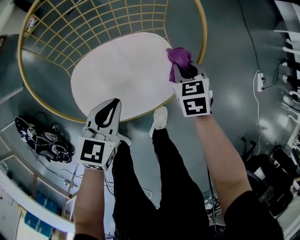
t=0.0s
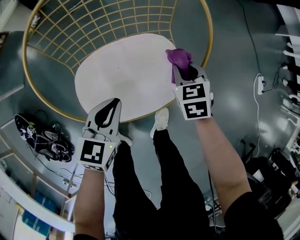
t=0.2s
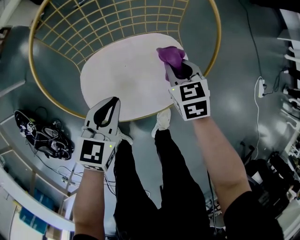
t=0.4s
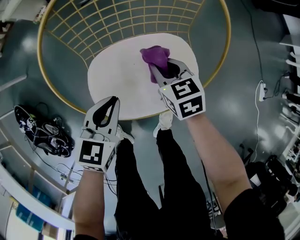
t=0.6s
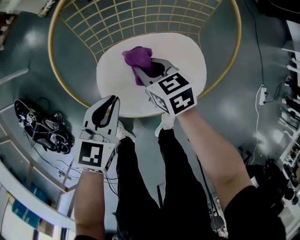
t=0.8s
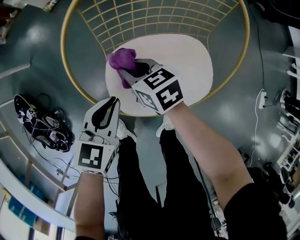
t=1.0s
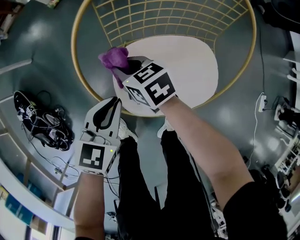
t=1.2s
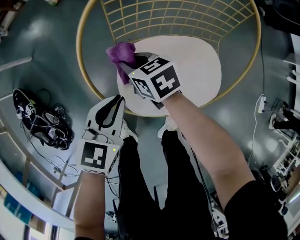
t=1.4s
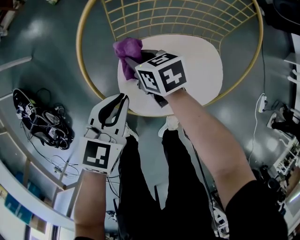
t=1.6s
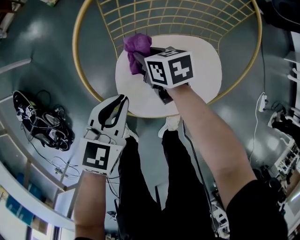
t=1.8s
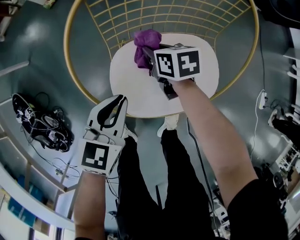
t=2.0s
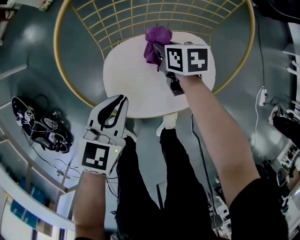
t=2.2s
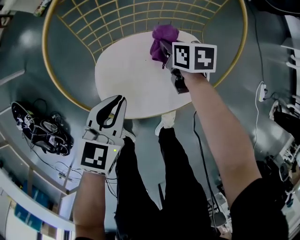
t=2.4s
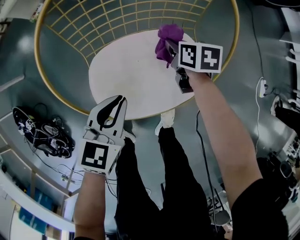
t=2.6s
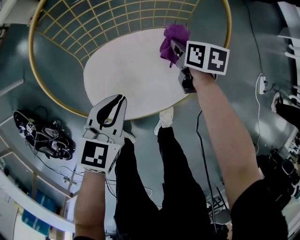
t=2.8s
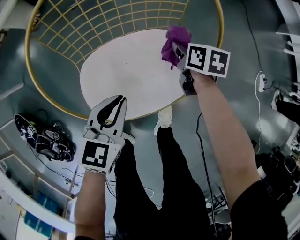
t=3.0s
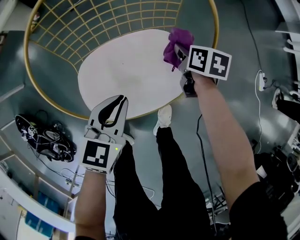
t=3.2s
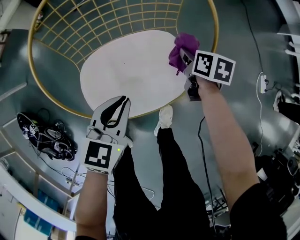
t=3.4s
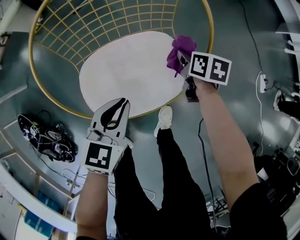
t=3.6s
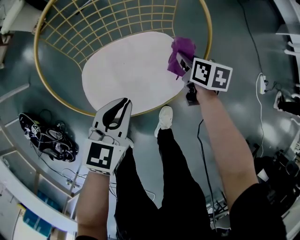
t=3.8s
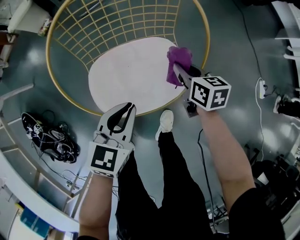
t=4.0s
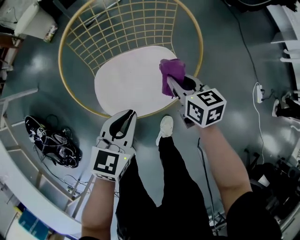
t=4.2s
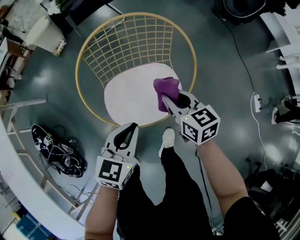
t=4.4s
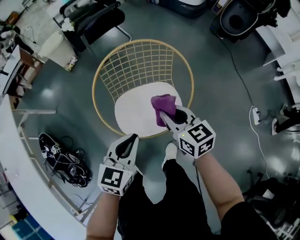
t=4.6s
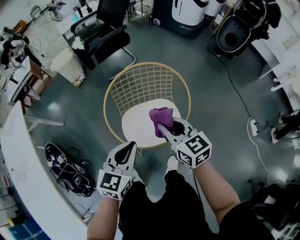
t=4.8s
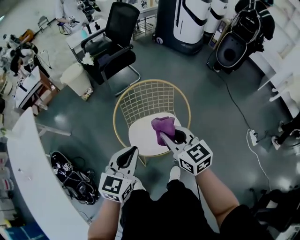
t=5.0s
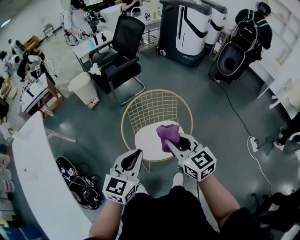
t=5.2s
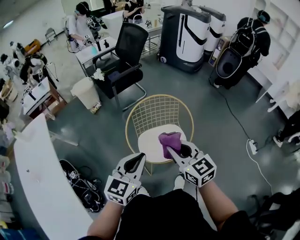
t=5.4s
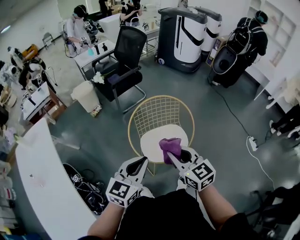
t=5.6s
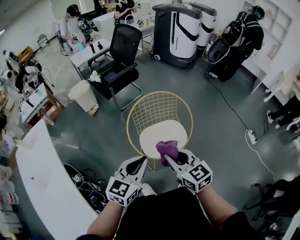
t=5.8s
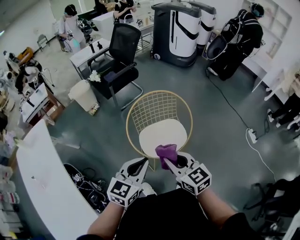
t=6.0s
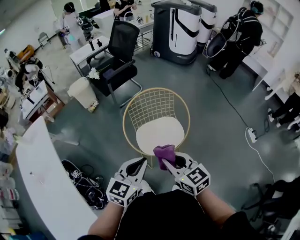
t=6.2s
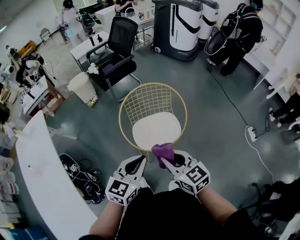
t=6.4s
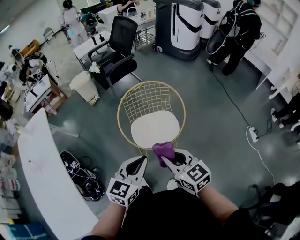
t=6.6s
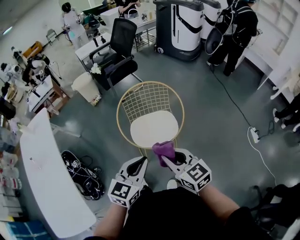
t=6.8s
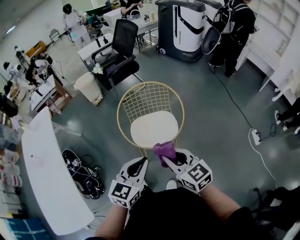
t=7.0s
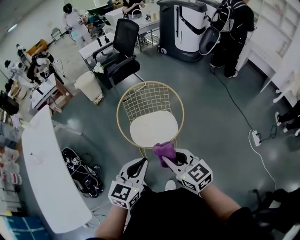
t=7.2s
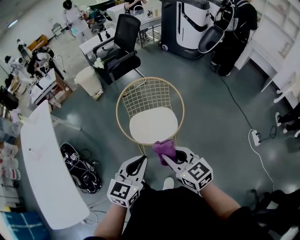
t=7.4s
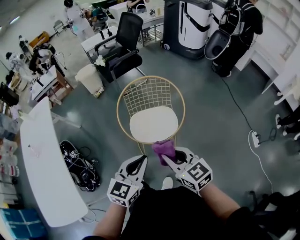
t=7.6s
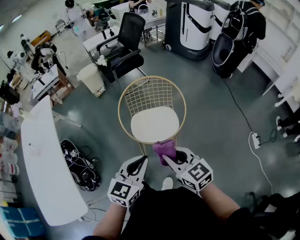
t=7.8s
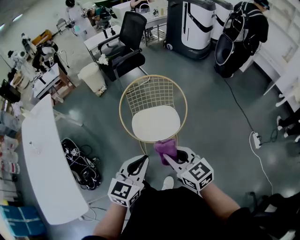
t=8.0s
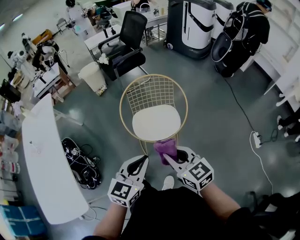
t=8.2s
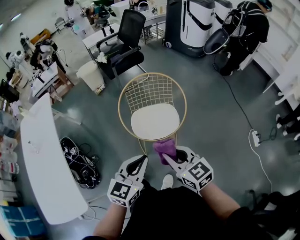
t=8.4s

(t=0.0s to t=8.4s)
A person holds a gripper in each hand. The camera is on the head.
t=0.0s - t=1.4s: The right gripper ends up some 40 cm from where it was, and changes its angle by about 40 degrees, while the left gripper ends up approximately 15 cm from where it was.
t=1.4s - t=2.8s: The left gripper changes place by some 10 cm, while the right gripper changes place by approximately 30 cm, and rotates roughly 40 degrees.
t=2.8s - t=4.2s: The left gripper heads upward, covering approximately 10 cm; the right gripper travels upward and backward by roughly 20 cm, and swivels some 20 degrees.
t=4.2s - t=5.6s: The right gripper heads upward, backward and to the left, covering approximately 50 cm, and swivels roughly 30 degrees. Meanwhile the left gripper heads upward, covering some 35 cm.
t=5.6s - t=7.0s: Both grippers travel together to the right and backward, about 15 cm.
t=7.0s - t=8.4s: The grippers make only small movements.

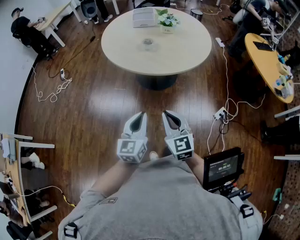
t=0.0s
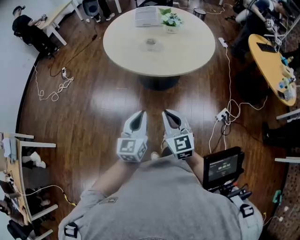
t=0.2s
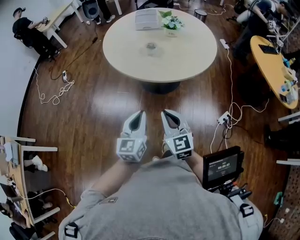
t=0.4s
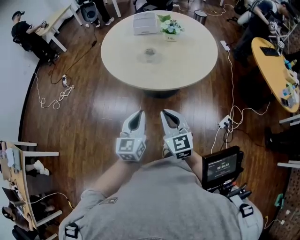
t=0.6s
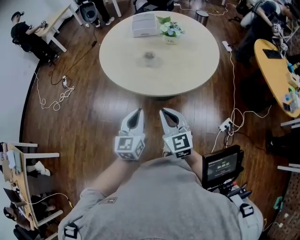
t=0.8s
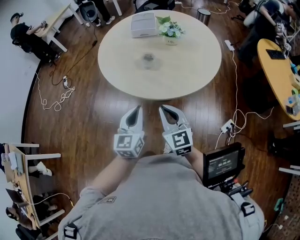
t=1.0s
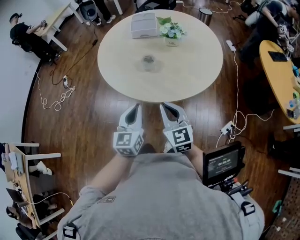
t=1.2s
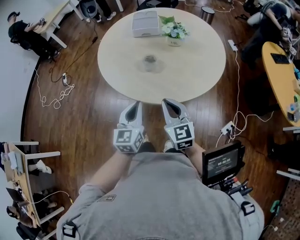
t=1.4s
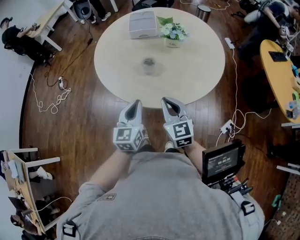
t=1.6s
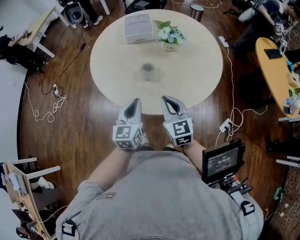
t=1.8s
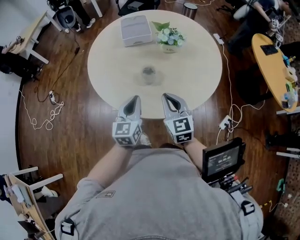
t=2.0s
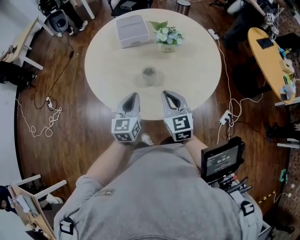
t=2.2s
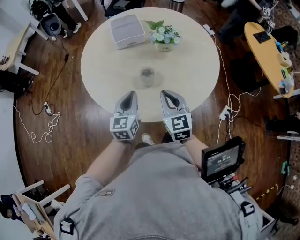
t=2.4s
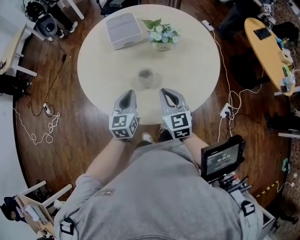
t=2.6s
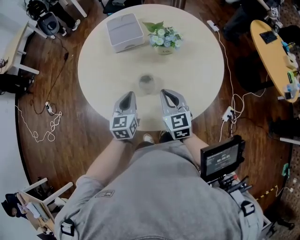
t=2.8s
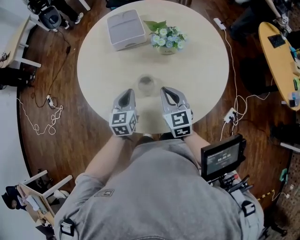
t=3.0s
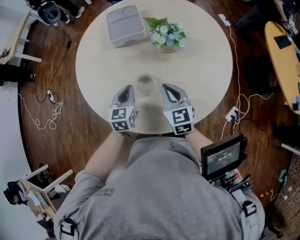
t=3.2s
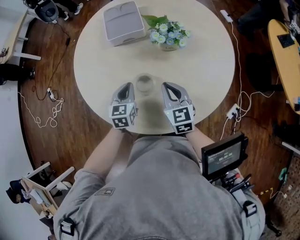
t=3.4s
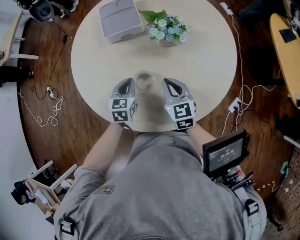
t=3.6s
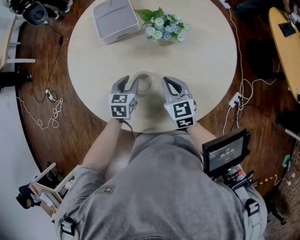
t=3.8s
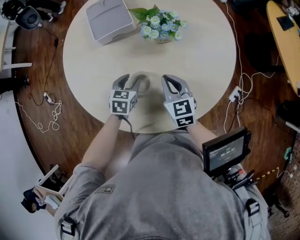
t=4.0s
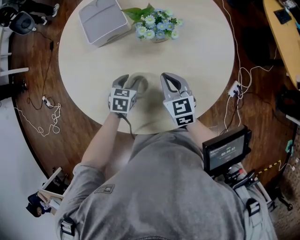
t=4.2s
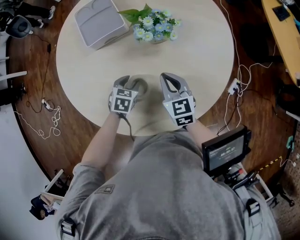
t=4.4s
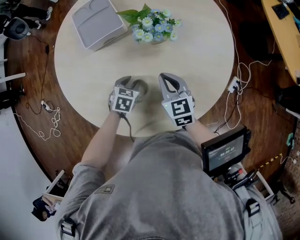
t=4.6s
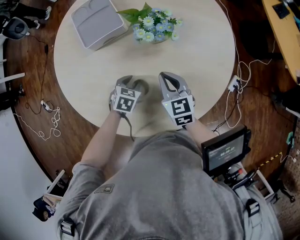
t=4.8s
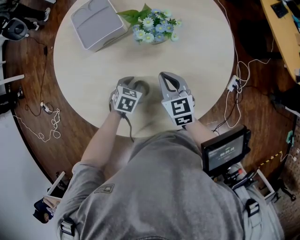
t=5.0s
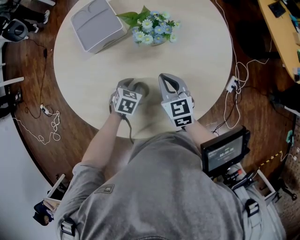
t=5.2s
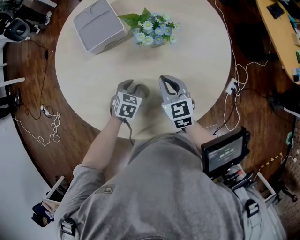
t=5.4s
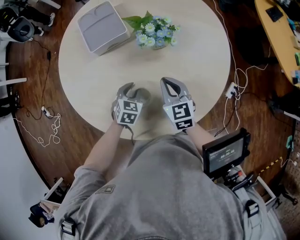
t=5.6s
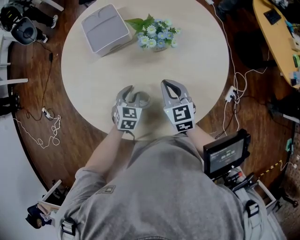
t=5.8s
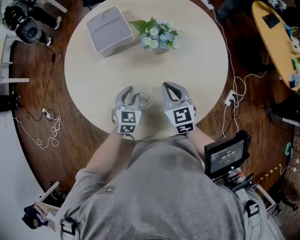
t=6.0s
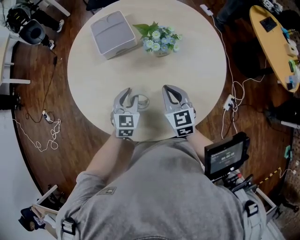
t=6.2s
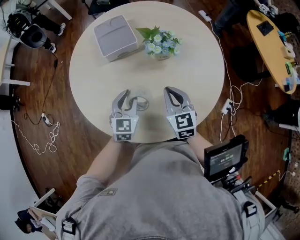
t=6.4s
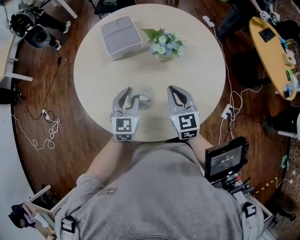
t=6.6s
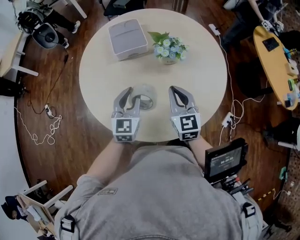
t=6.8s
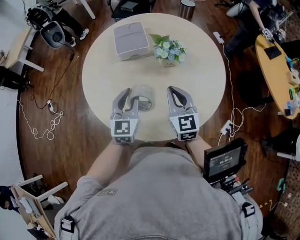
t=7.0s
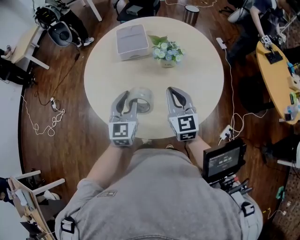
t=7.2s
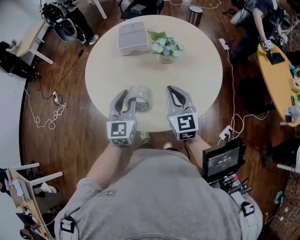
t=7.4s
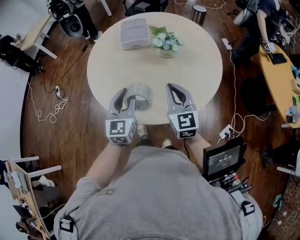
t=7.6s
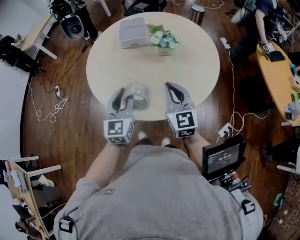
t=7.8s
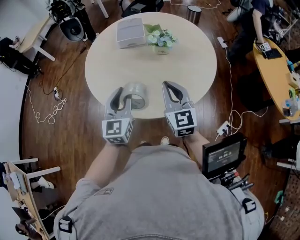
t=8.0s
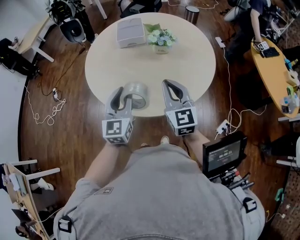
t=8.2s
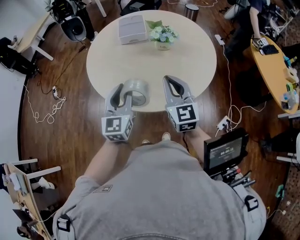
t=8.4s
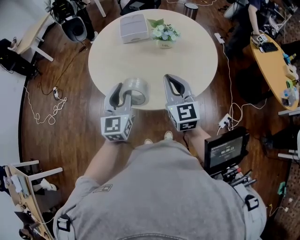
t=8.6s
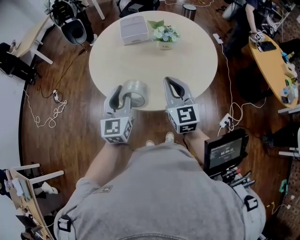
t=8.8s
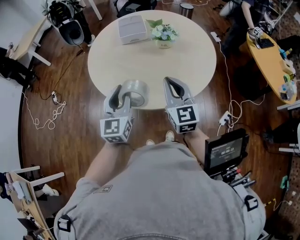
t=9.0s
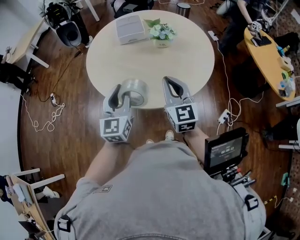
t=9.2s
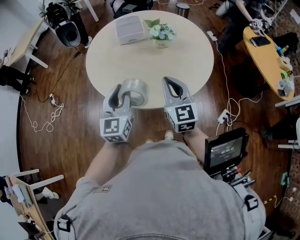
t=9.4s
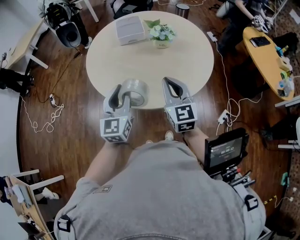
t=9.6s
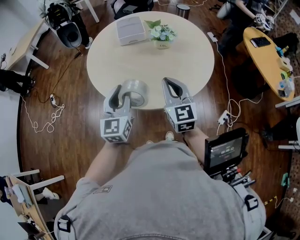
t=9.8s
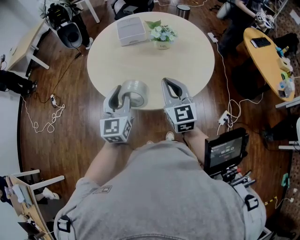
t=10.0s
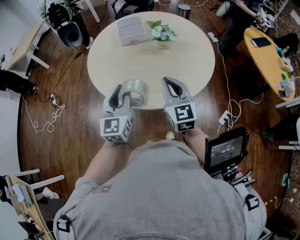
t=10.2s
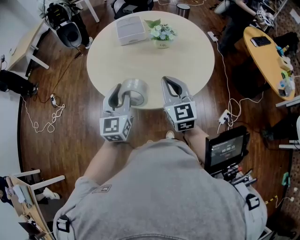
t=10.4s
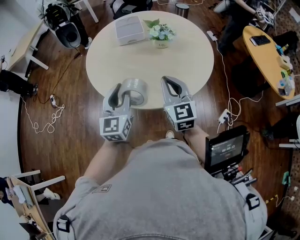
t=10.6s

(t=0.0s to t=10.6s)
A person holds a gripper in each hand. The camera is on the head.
t=0.0s - t=1.6s: Both grippers travel together forward, some 30 cm.
t=1.6s - t=3.0s: The grippers both shift forward by some 20 cm.
t=3.0s - t=4.6s: The left gripper goes approximately 15 cm downward and forward, points its fingers about 40 degrees further downward, and opens. The right gripper goes some 10 cm forward and downward.
t=4.6s - t=6.0s: The left gripper moves upward, approximately 10 cm, and rotates some 30 degrees.
t=6.0s - t=7.6s: The right gripper is displaced upward, backward and to the right by roughly 20 cm, and turns by roughly 20 degrees; the left gripper travels upward and backward by approximately 25 cm, and turns by about 40 degrees.
t=7.6s - t=9.0s: The grippers both shift backward and to the left by roughly 10 cm.
t=9.0s - t=10.6s: Neither gripper changes place.

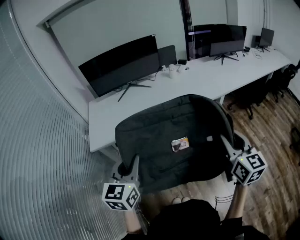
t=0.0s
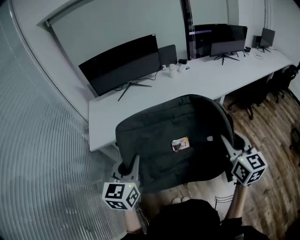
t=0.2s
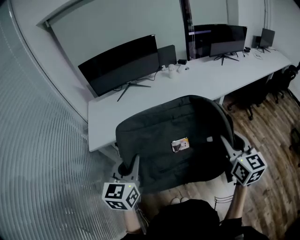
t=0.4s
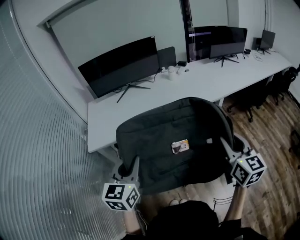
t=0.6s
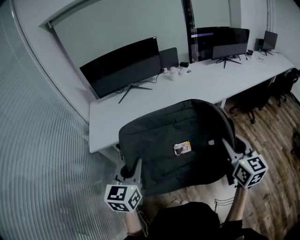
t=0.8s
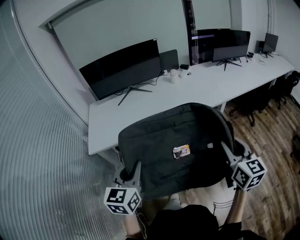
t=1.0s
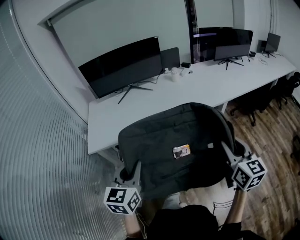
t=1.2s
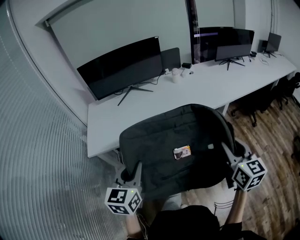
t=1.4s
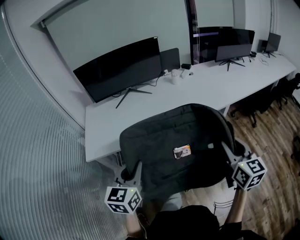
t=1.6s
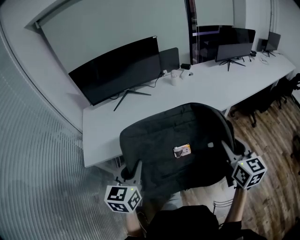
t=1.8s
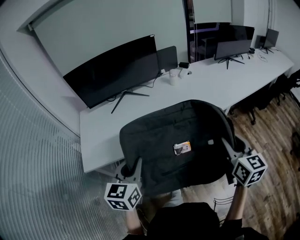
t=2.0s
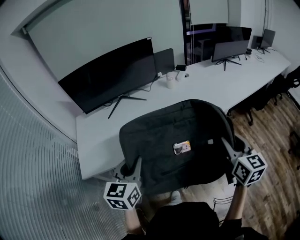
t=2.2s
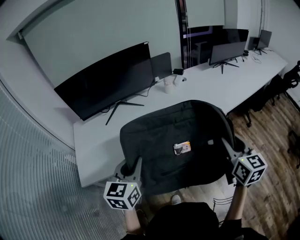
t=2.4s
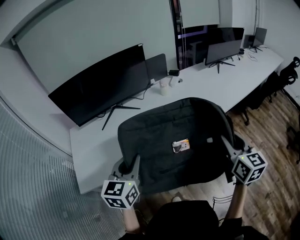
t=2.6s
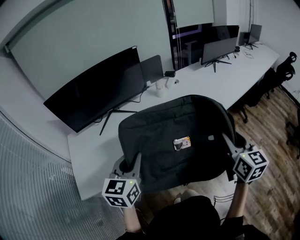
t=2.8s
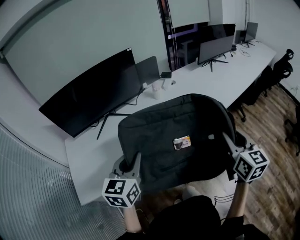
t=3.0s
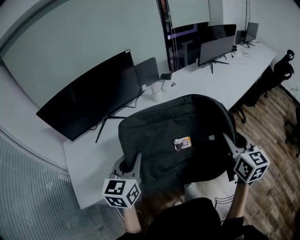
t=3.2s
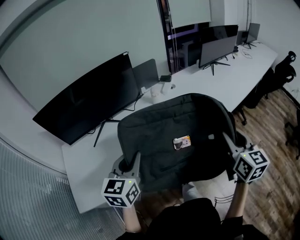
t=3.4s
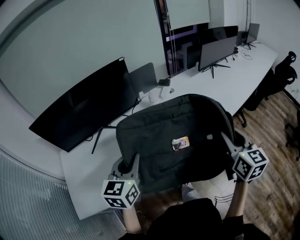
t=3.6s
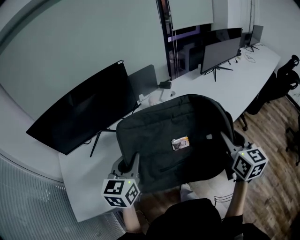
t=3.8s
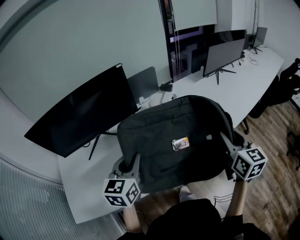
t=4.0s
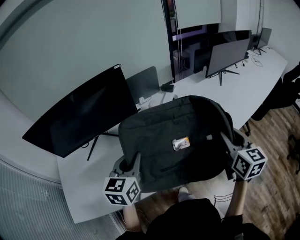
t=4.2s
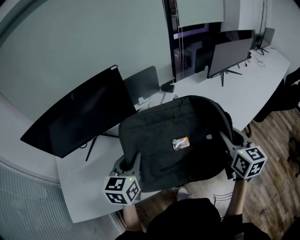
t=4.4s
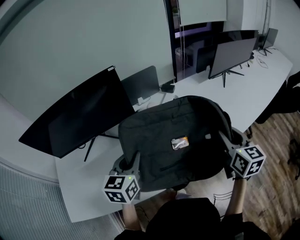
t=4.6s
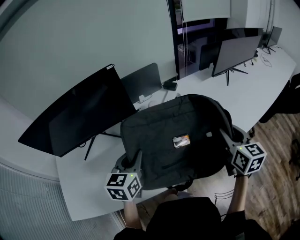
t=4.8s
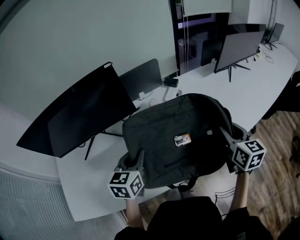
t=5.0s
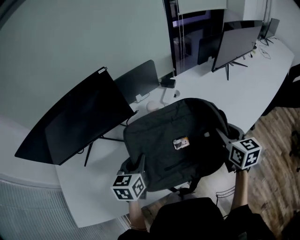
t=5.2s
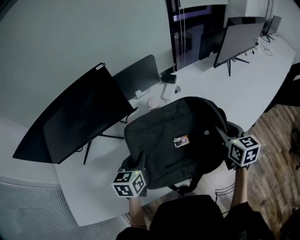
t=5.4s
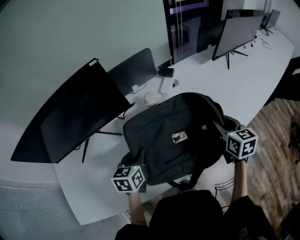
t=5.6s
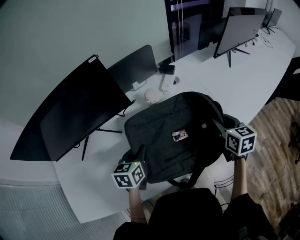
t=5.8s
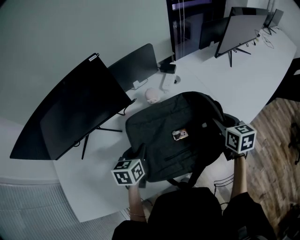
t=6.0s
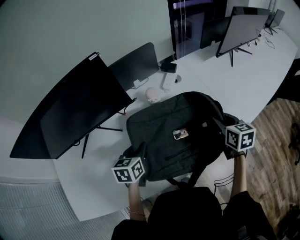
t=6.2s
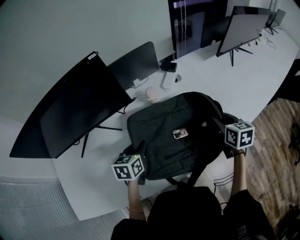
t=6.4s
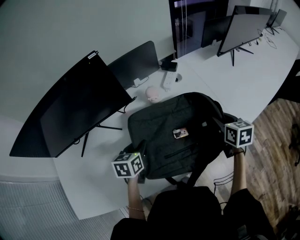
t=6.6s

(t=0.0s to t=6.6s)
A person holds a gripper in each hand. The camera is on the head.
t=0.0s - t=1.6s: The grippers both shift forward by about 10 cm.
t=1.6s - t=3.2s: The grippers both shift forward by about 25 cm.
t=3.2s - t=5.0s: Both grippers move forward, about 30 cm.
t=5.0s - t=6.6s: The right gripper moves downward and forward, about 15 cm, while the left gripper is displaced downward by some 15 cm.
